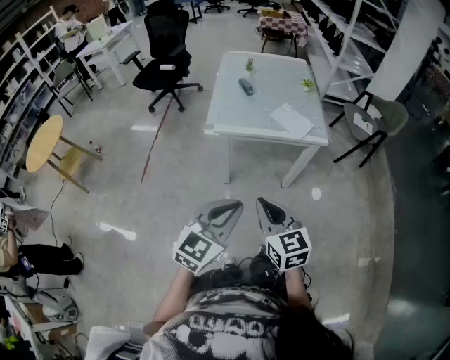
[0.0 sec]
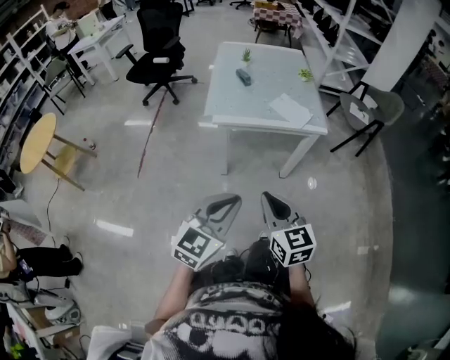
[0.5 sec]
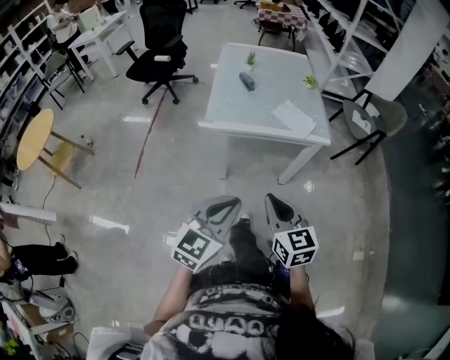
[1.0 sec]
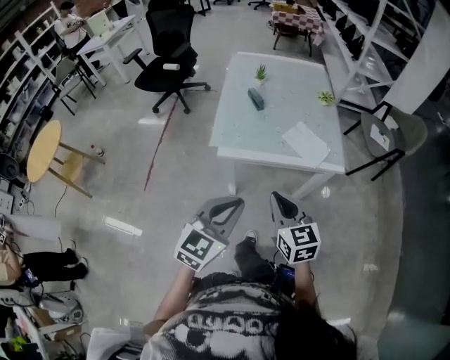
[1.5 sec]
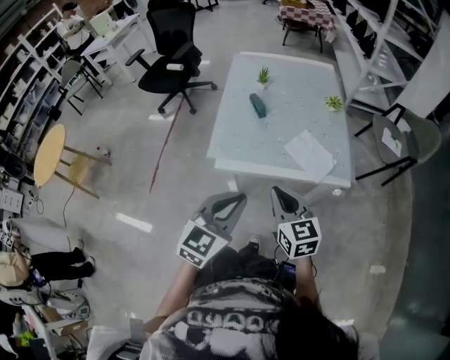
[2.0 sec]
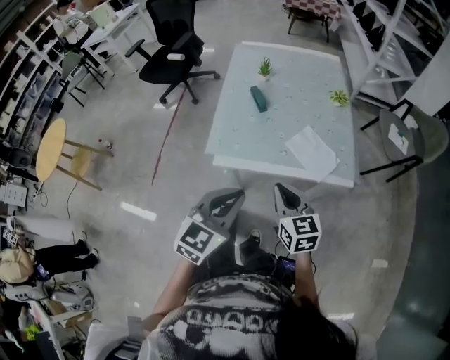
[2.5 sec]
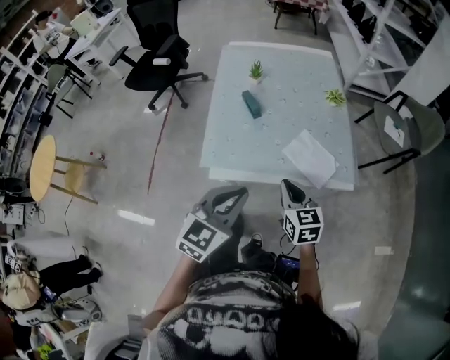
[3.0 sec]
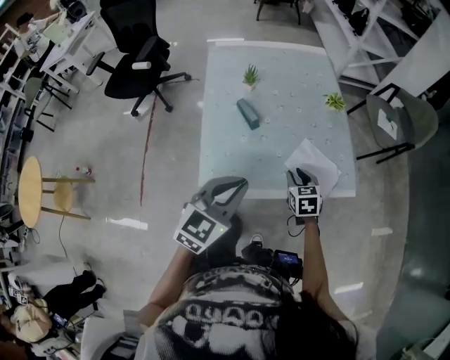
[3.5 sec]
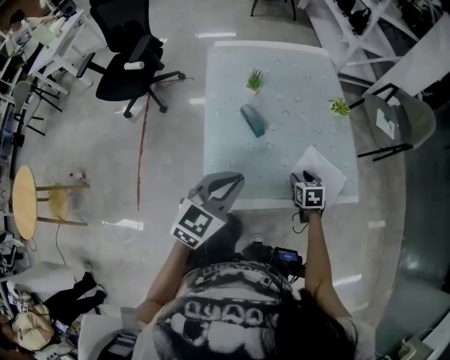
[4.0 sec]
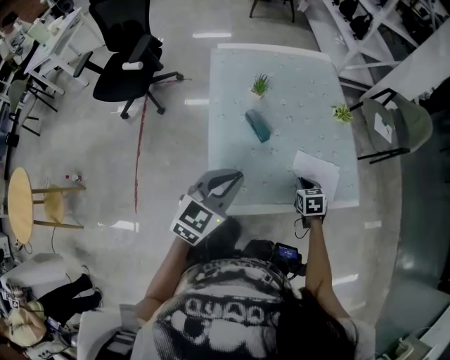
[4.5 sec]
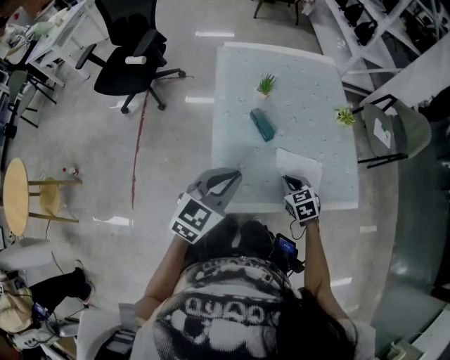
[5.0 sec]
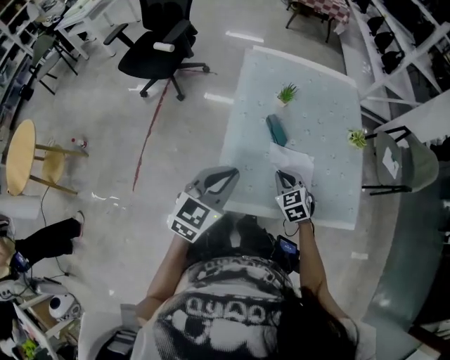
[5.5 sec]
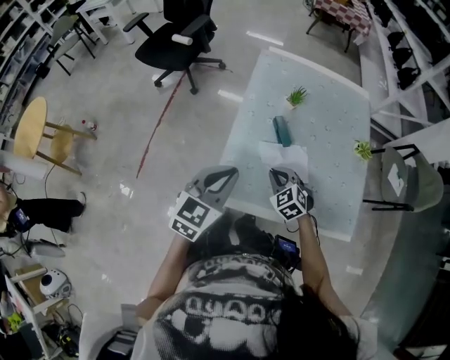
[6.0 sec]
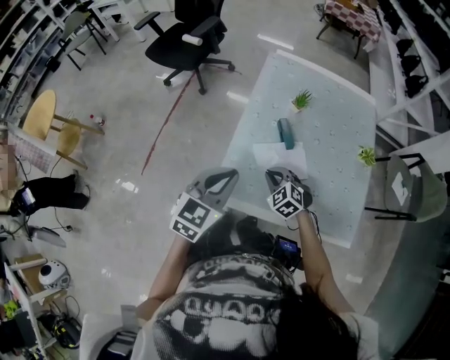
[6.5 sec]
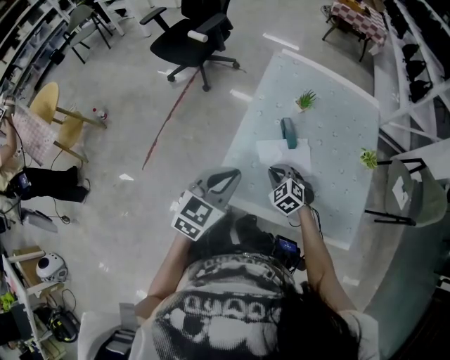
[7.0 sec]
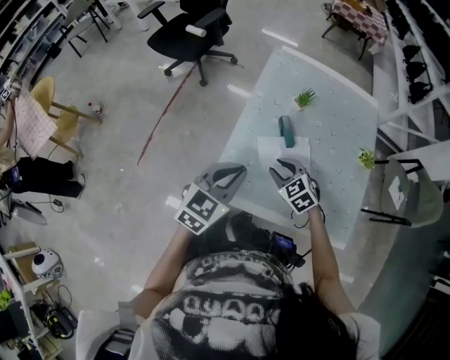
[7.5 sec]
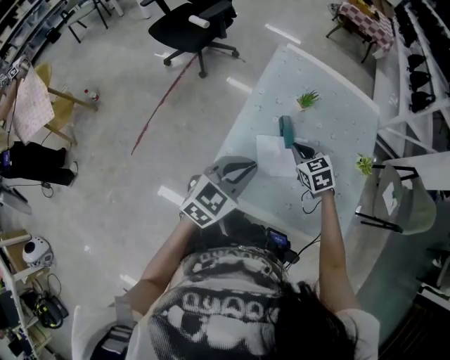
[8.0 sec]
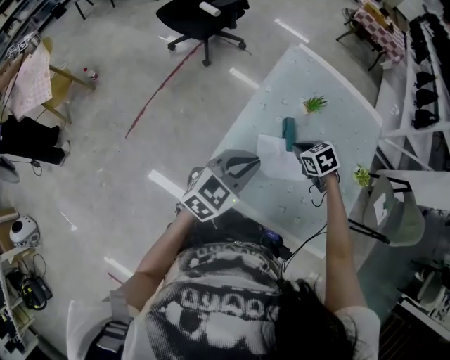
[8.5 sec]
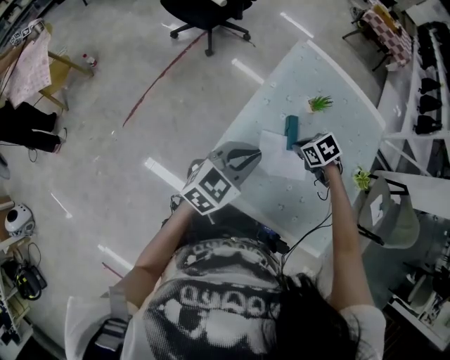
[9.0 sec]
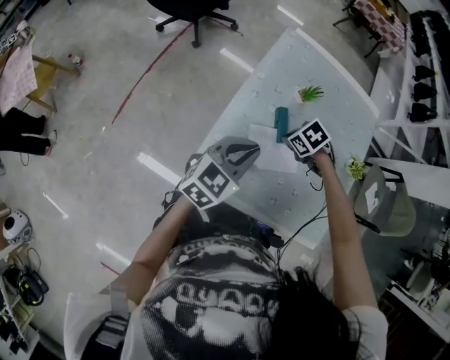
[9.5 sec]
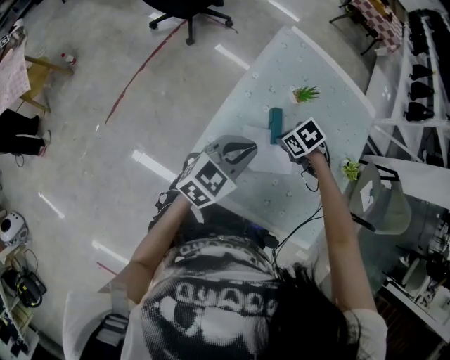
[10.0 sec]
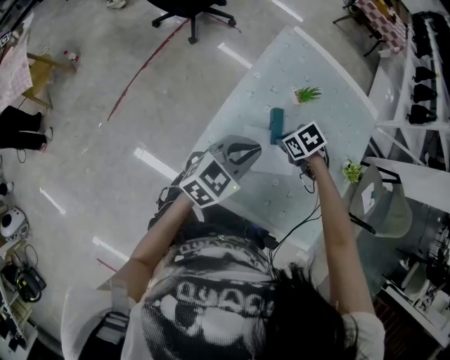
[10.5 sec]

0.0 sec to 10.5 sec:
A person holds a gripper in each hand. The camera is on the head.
0.0 sec to 2.0 sec: Both grippers travel together forward, some 30 cm.
2.0 sec to 4.0 sec: The right gripper travels forward and downward by some 35 cm, points its fingers approximately 40 degrees further downward, and opens its fingers. Meanwhile the left gripper heads forward and to the left, covering some 25 cm.
4.0 sec to 6.5 sec: The right gripper ends up approximately 20 cm from where it was, rolls counterclockwise, seen from behind, by about 60 degrees, and closes its fingers, while the left gripper shifts by about 5 cm, and changes its angle by approximately 30 degrees.
6.5 sec to 8.5 sec: The right gripper moves forward and to the right, approximately 15 cm, rotates roughly 30 degrees, and opens, then closes once more, while the left gripper ends up about 5 cm from where it was.
8.5 sec to 10.5 sec: The left gripper ends up roughly 5 cm from where it was.

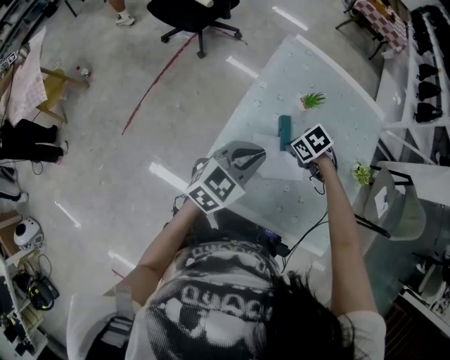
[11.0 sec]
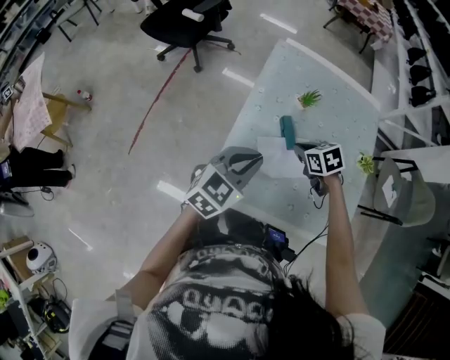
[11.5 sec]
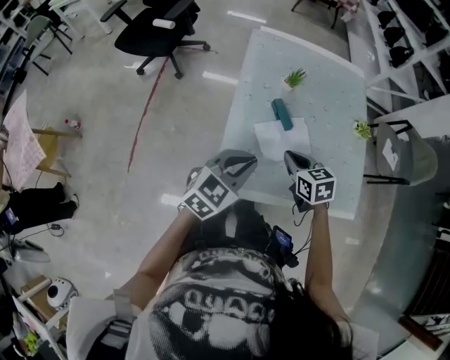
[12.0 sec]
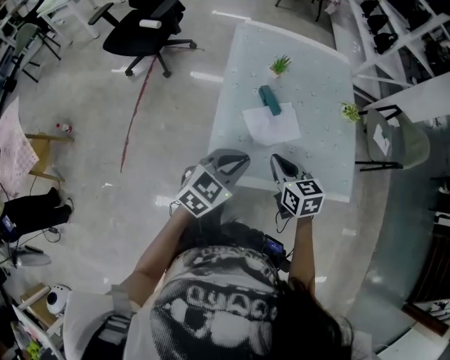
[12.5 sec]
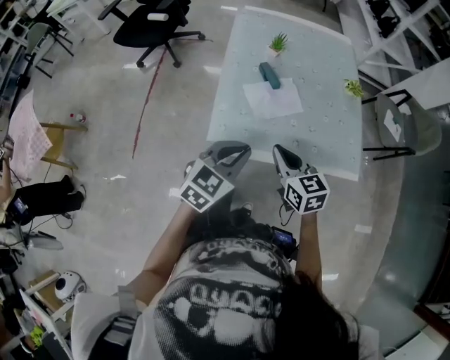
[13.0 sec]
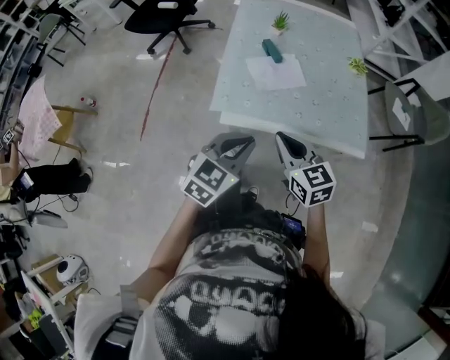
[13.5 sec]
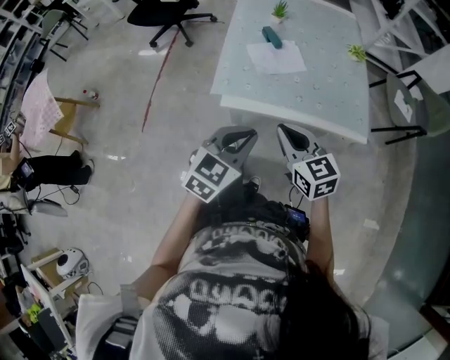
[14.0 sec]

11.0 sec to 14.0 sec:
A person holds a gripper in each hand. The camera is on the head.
11.0 sec to 12.5 sec: The right gripper changes place by approximately 20 cm, and tips its fingers upward by about 40 degrees; the left gripper changes place by roughly 15 cm.
12.5 sec to 14.0 sec: Both grippers travel together backward, roughly 20 cm.

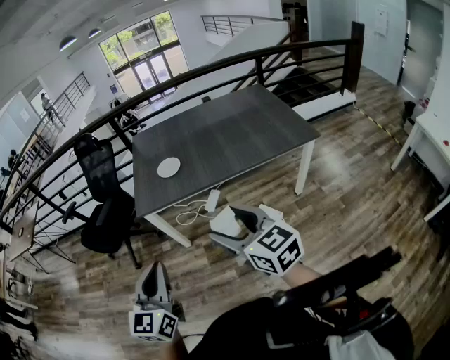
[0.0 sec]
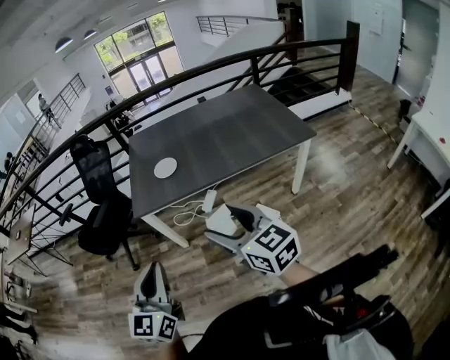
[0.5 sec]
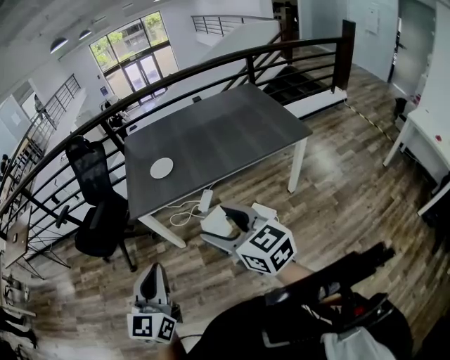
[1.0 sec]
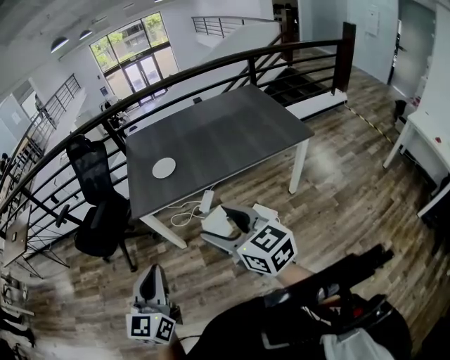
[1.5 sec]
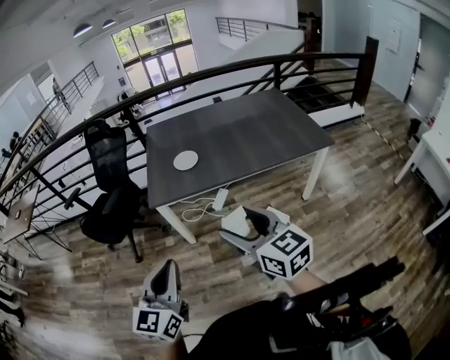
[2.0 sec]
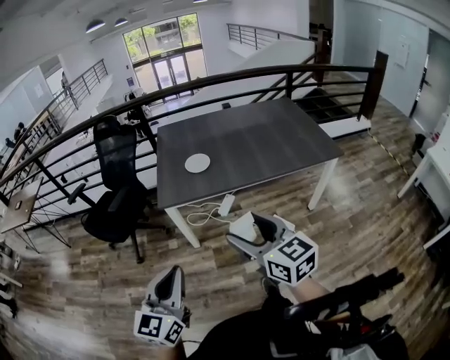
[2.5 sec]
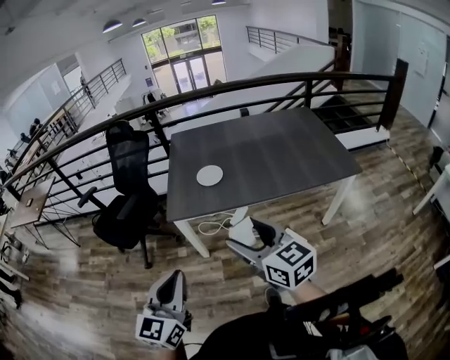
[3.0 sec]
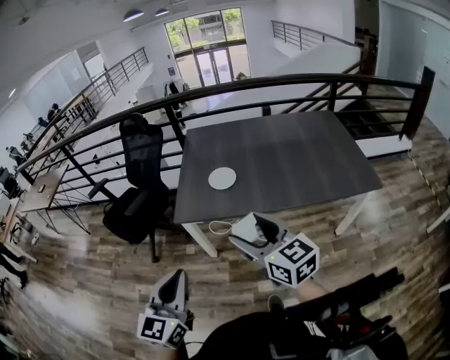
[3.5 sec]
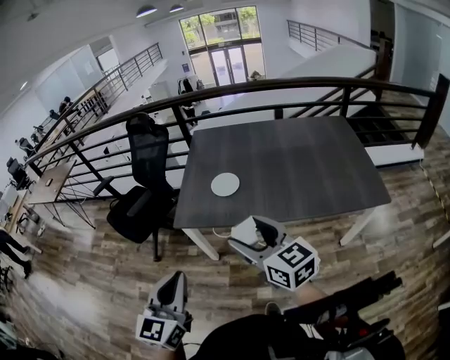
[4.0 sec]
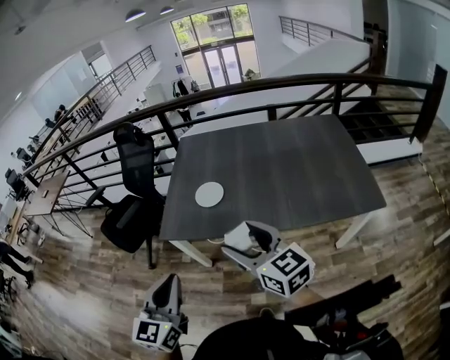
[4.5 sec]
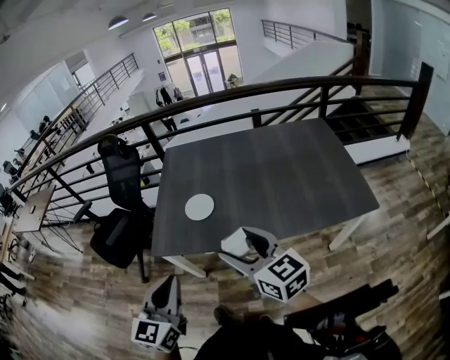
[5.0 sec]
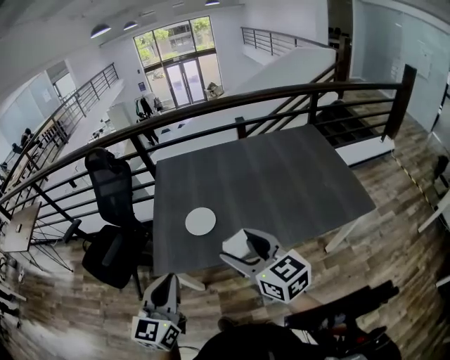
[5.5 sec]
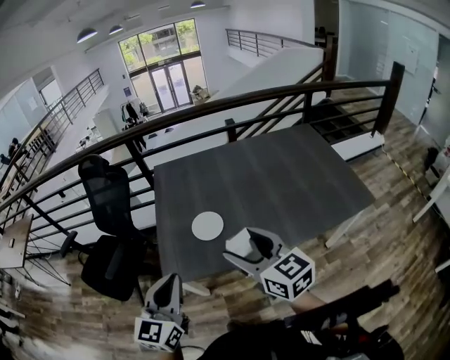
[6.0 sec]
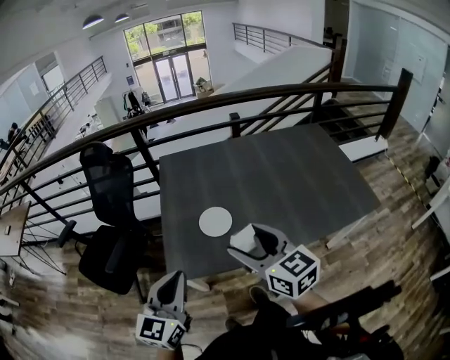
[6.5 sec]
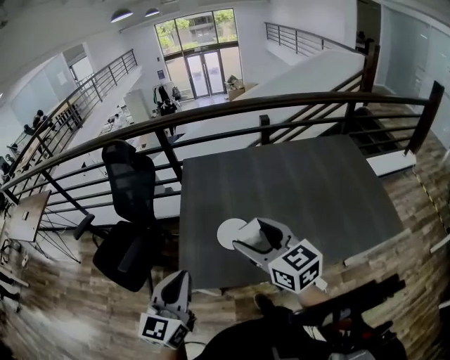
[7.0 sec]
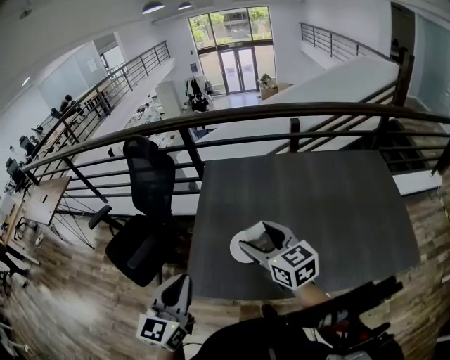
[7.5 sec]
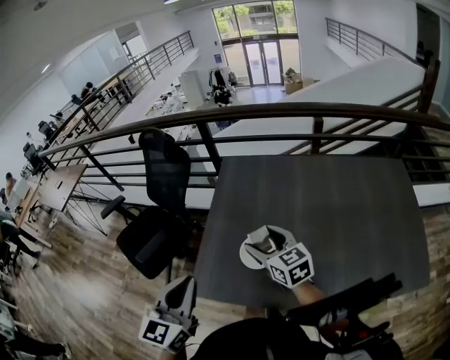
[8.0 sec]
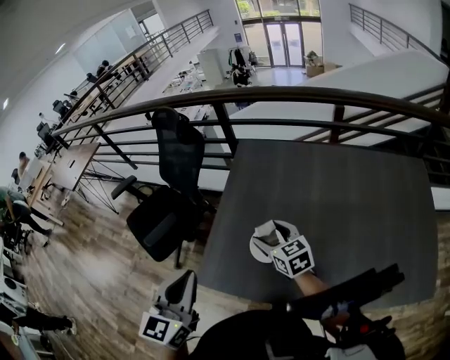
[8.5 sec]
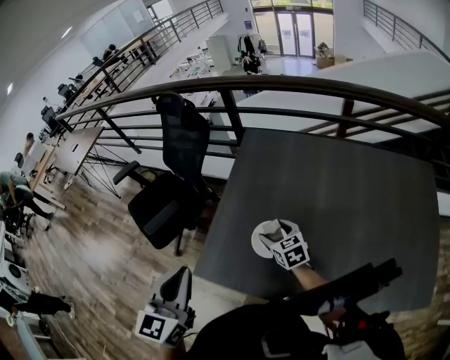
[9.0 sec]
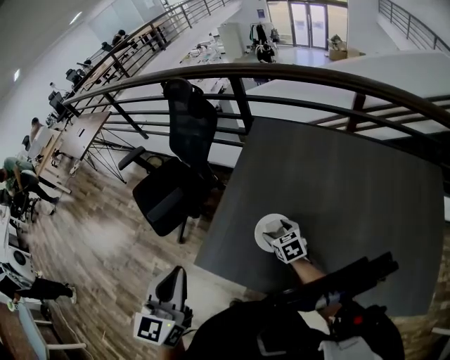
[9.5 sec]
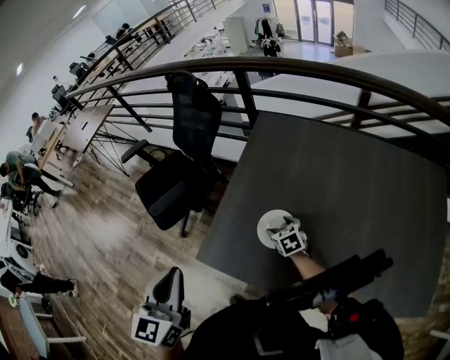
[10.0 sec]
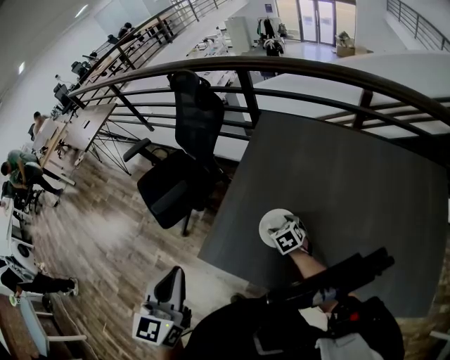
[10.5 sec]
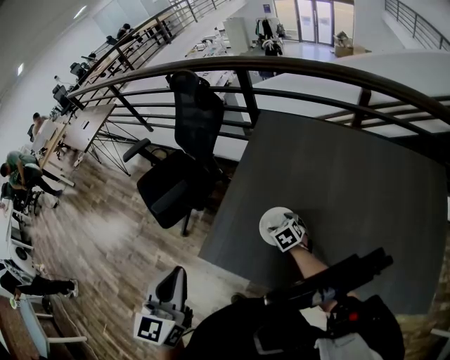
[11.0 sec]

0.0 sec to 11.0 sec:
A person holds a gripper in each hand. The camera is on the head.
0.0 sec to 2.0 sec: The grippers both shift to the left by approximately 5 cm.
2.0 sec to 3.5 sec: Both grippers move forward, about 15 cm.
3.5 sec to 5.5 sec: Both grippers move forward and to the right, approximately 25 cm.
5.5 sec to 7.5 sec: The grippers both shift forward by approximately 20 cm.
7.5 sec to 9.0 sec: The right gripper shifts roughly 25 cm downward and forward, and swivels approximately 20 degrees.
9.0 sec to 11.0 sec: The right gripper shifts about 10 cm downward, and changes its angle by roughly 20 degrees.

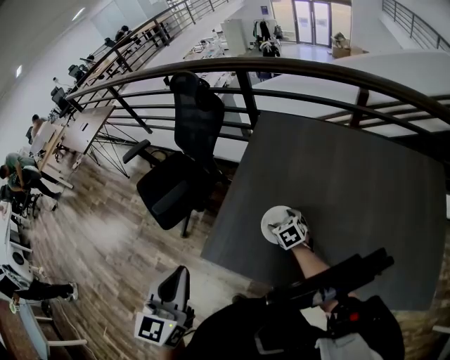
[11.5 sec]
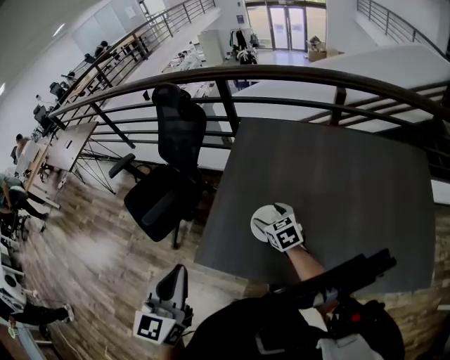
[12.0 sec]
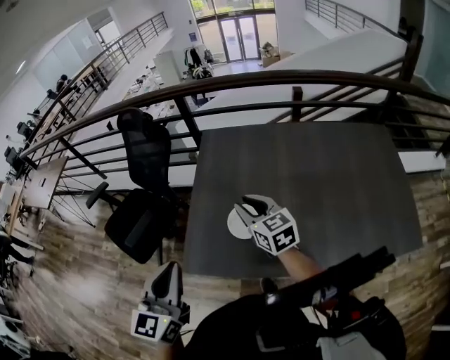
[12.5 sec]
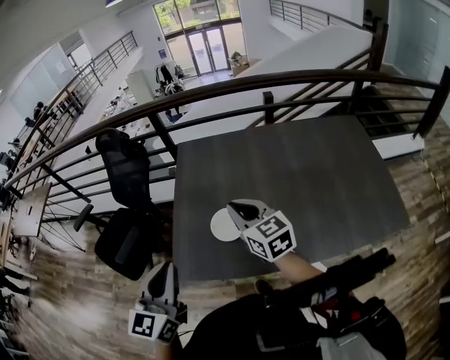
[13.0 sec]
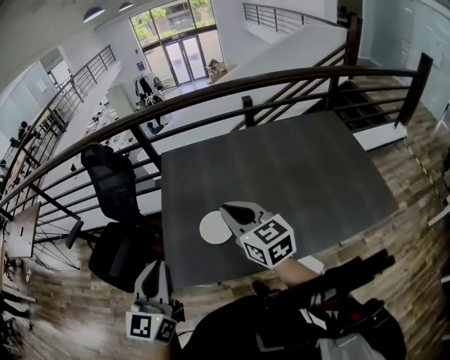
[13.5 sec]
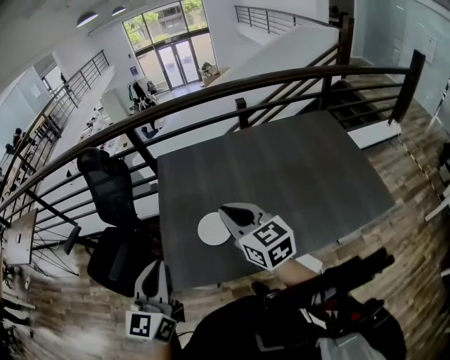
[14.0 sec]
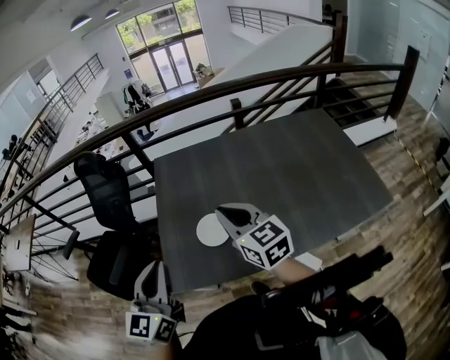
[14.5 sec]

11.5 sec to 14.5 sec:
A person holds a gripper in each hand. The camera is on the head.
11.5 sec to 13.0 sec: The left gripper changes its angle by approximately 20 degrees. The right gripper moves upward, roughly 30 cm, points its fingers some 40 degrees further upward, and closes its fingers.
13.0 sec to 14.5 sec: The right gripper shifts by roughly 5 cm.
